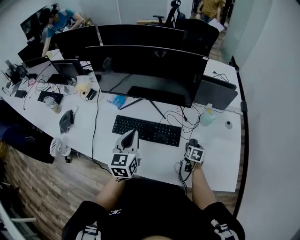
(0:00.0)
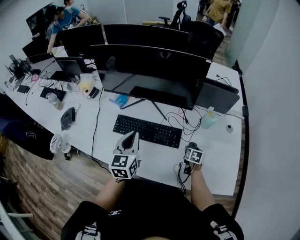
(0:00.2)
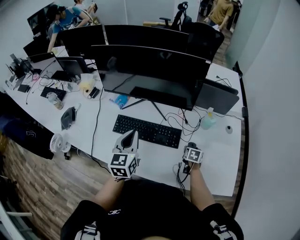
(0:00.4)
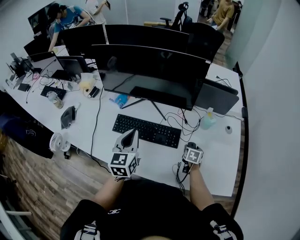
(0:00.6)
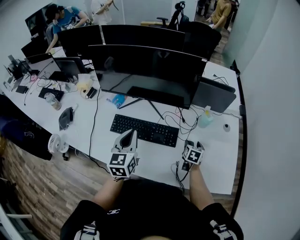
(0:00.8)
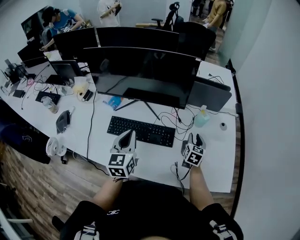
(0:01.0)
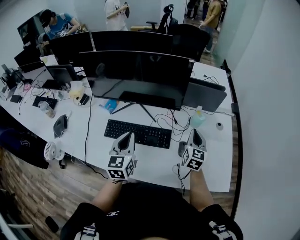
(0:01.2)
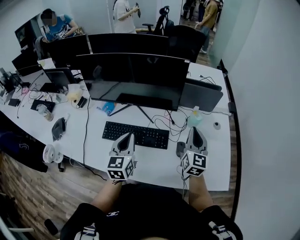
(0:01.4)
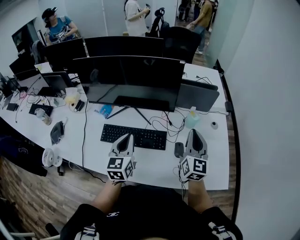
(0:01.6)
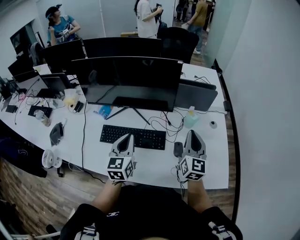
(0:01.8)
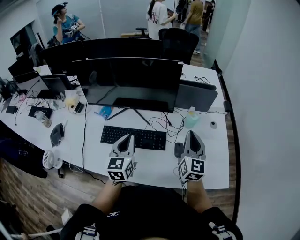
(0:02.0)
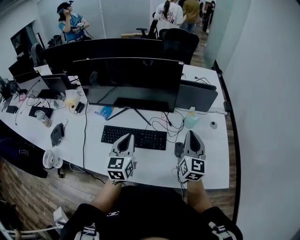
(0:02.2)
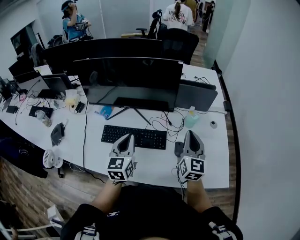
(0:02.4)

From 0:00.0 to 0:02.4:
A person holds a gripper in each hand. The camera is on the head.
From 0:00.0 to 0:01.2: The right gripper is displaced upward by some 20 cm, points its fingers some 40 degrees further upward, and closes.
From 0:01.2 to 0:02.4: The right gripper is displaced upward and backward by some 10 cm.

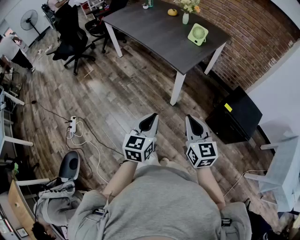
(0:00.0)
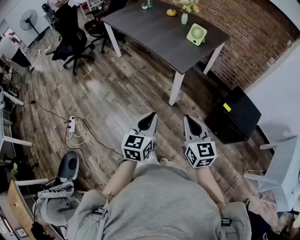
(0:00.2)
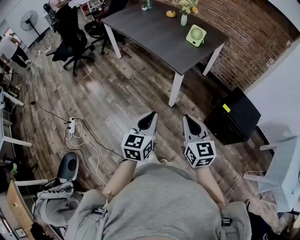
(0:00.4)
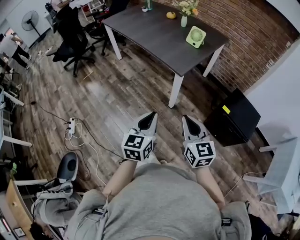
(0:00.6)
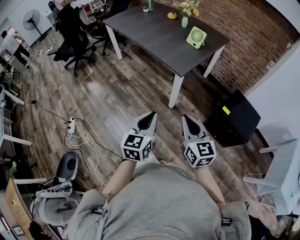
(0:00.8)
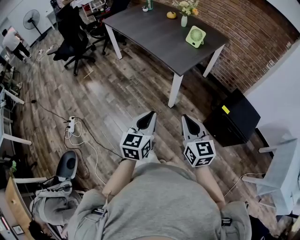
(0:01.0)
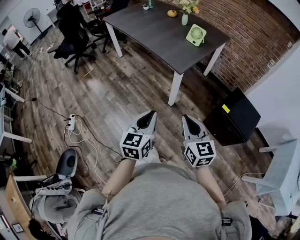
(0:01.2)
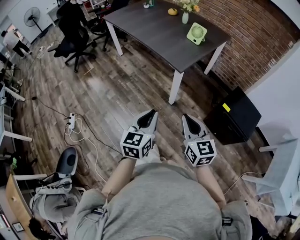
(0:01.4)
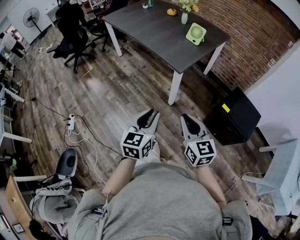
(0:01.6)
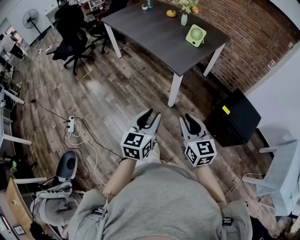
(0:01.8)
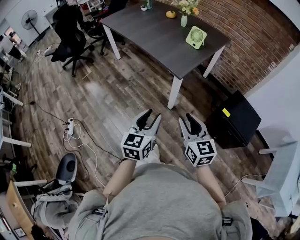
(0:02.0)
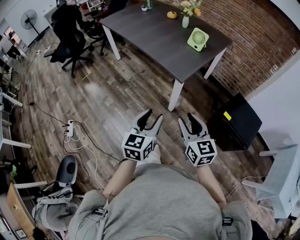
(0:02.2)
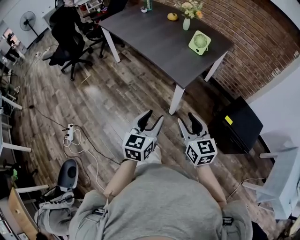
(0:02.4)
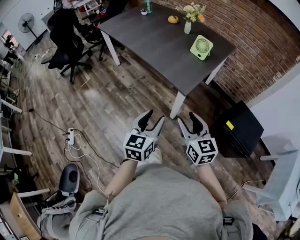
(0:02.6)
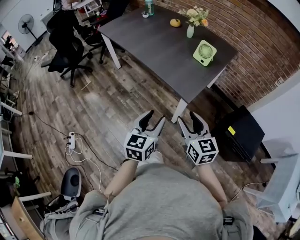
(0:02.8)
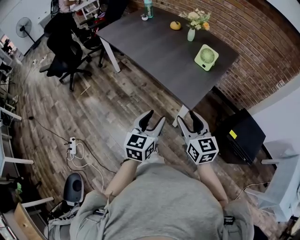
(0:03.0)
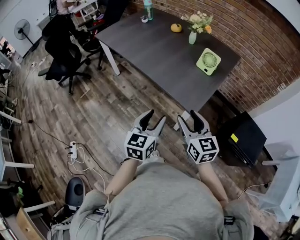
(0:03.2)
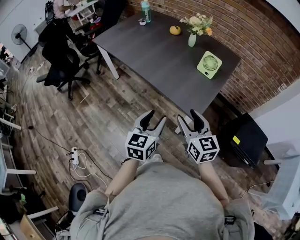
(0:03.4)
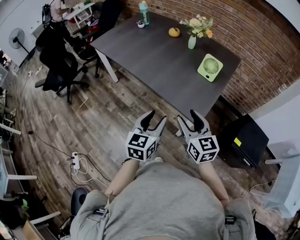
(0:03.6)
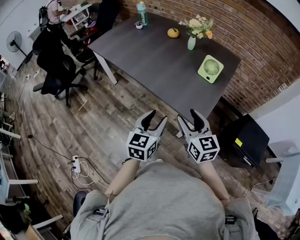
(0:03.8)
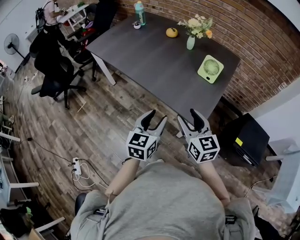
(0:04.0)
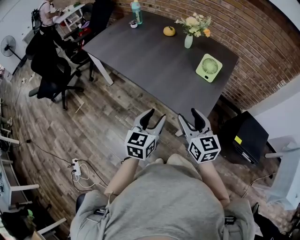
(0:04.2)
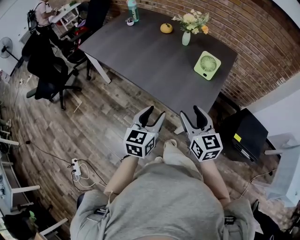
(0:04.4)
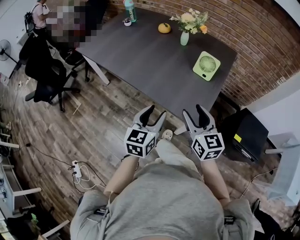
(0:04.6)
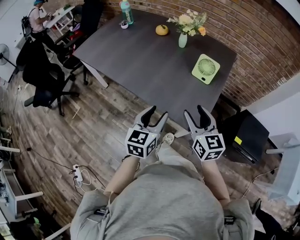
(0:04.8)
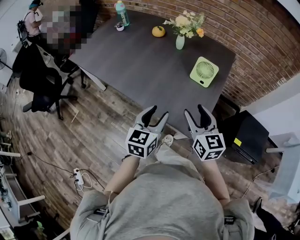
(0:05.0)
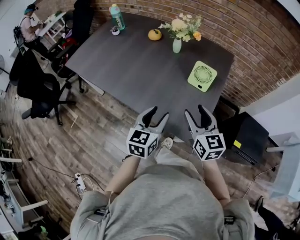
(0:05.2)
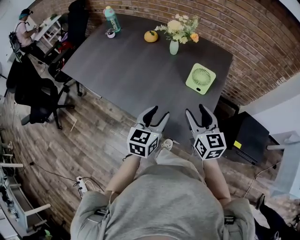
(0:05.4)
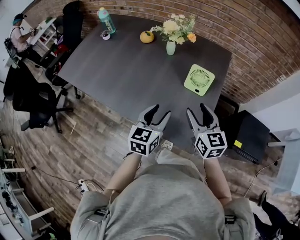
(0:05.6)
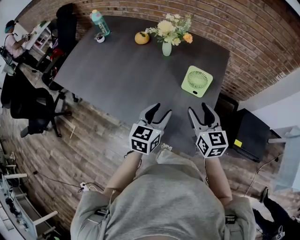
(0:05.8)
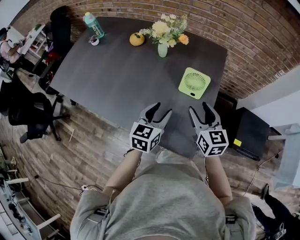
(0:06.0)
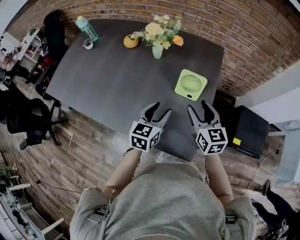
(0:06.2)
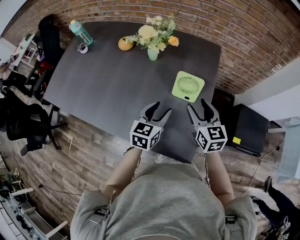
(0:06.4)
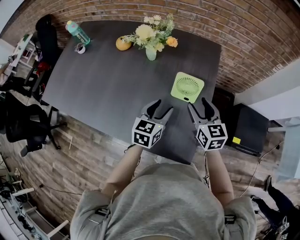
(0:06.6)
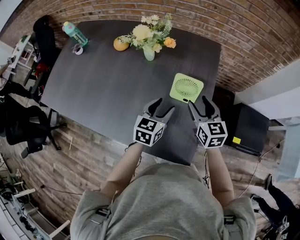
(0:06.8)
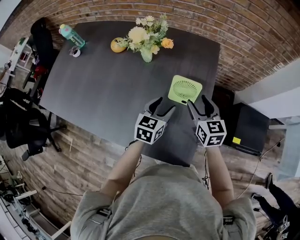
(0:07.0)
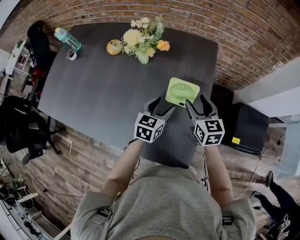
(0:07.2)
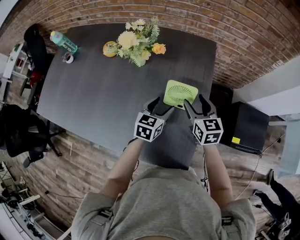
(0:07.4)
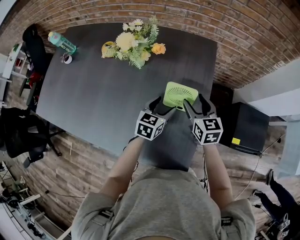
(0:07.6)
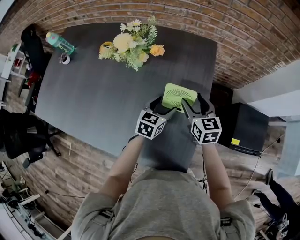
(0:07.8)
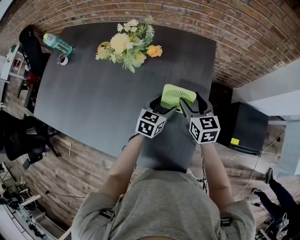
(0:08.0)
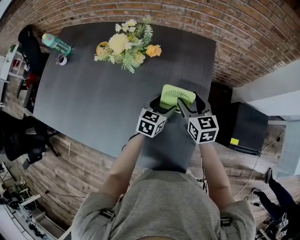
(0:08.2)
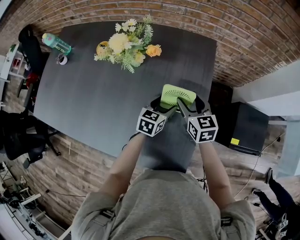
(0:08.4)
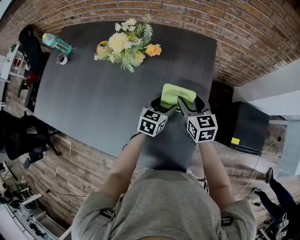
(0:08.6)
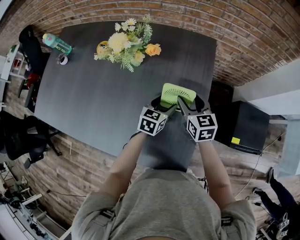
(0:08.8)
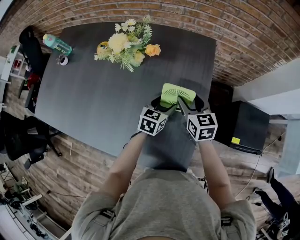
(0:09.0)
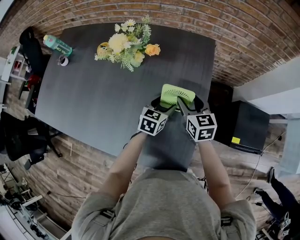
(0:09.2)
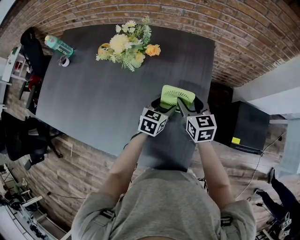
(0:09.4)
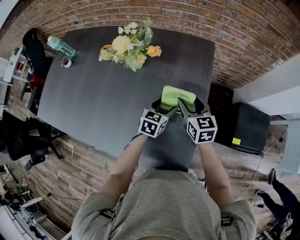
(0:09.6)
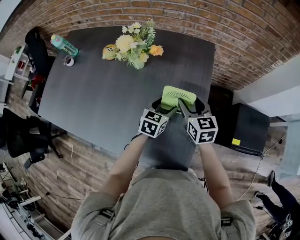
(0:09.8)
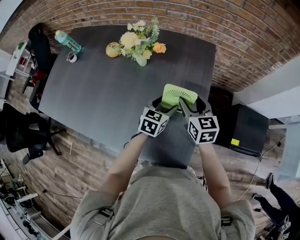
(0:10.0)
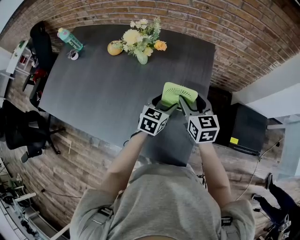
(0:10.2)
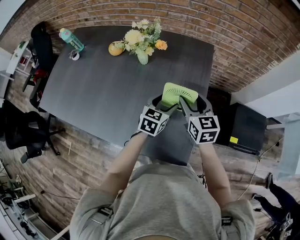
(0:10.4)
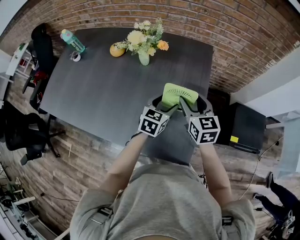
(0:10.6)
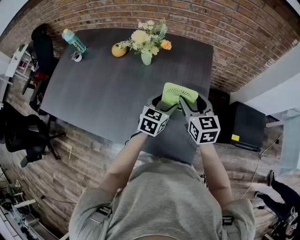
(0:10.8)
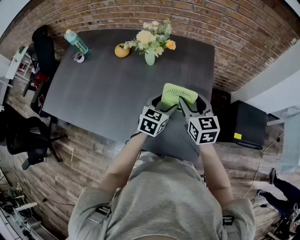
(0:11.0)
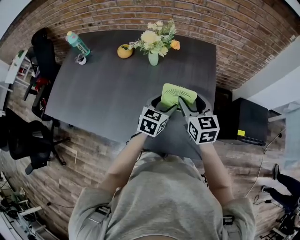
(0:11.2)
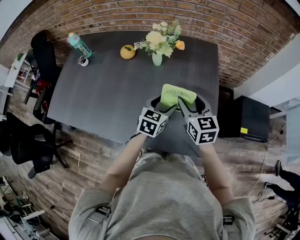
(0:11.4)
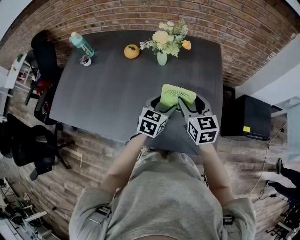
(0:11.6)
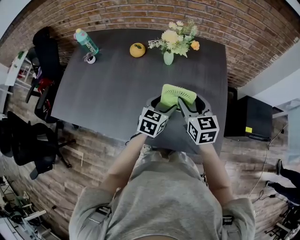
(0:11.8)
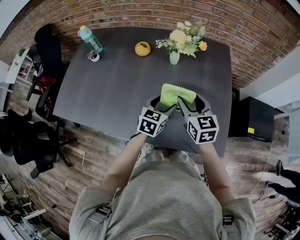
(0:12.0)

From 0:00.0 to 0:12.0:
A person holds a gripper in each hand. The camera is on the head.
From 0:00.0 to 0:01.6: There are only small adjustments of the grippers.
From 0:01.6 to 0:03.0: The two grippers go some 25 cm forward. The right gripper opens its fingers.
From 0:03.0 to 0:04.4: Both grippers move forward, approximately 15 cm.
From 0:04.4 to 0:06.0: Both grippers move forward, some 25 cm.
From 0:06.0 to 0:07.6: The right gripper is displaced forward and downward by about 15 cm, while the left gripper heads forward, downward and to the right, covering roughly 20 cm.
From 0:07.6 to 0:09.0: The grippers make only small movements.
From 0:09.0 to 0:10.4: The grippers both shift upward and backward by approximately 10 cm.
From 0:10.4 to 0:12.0: The grippers both shift to the left by roughly 20 cm.

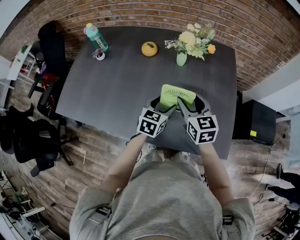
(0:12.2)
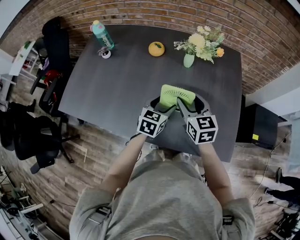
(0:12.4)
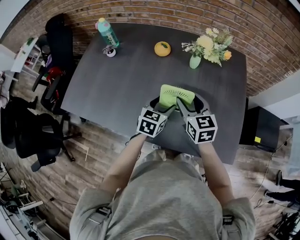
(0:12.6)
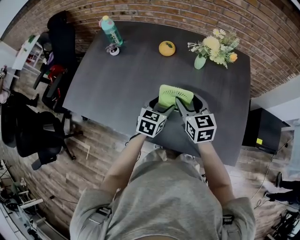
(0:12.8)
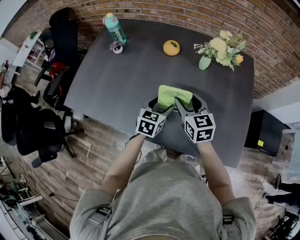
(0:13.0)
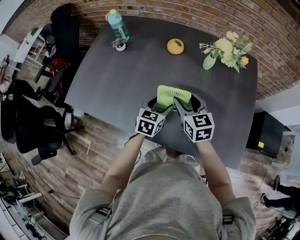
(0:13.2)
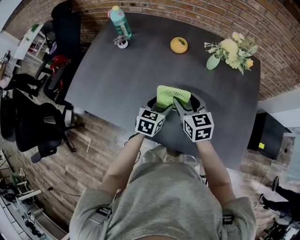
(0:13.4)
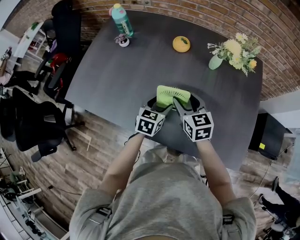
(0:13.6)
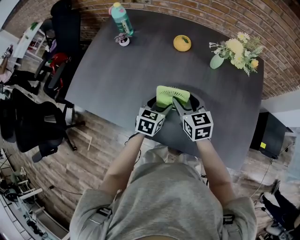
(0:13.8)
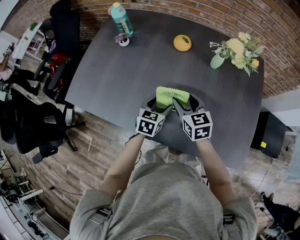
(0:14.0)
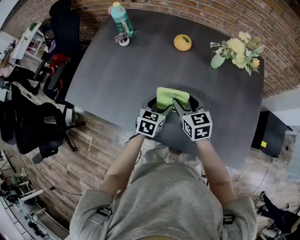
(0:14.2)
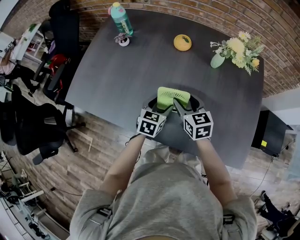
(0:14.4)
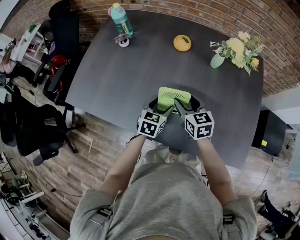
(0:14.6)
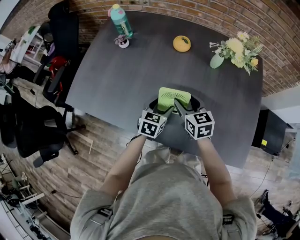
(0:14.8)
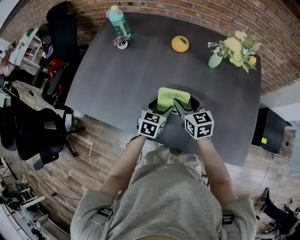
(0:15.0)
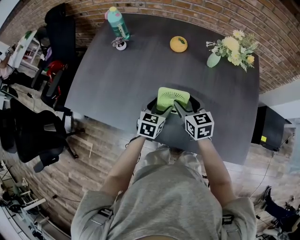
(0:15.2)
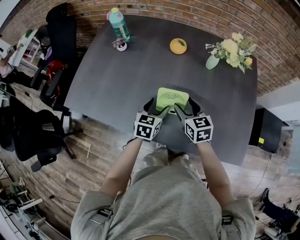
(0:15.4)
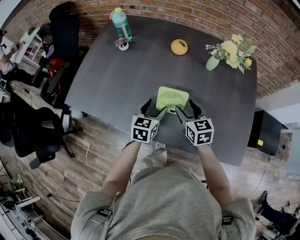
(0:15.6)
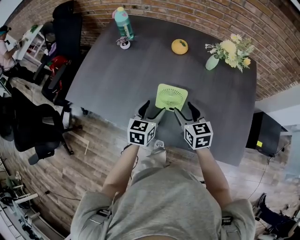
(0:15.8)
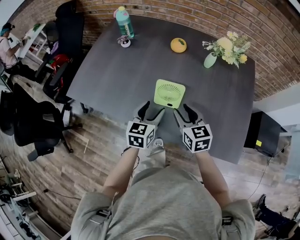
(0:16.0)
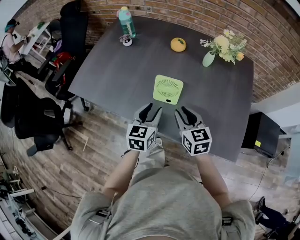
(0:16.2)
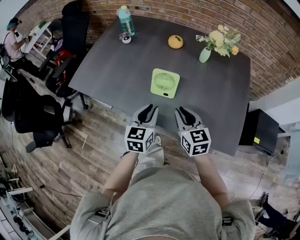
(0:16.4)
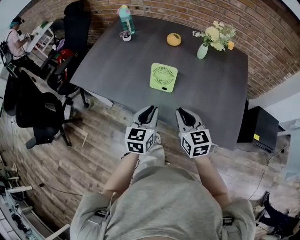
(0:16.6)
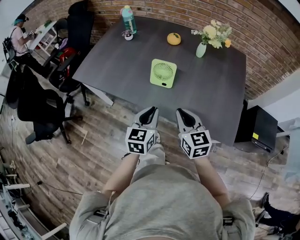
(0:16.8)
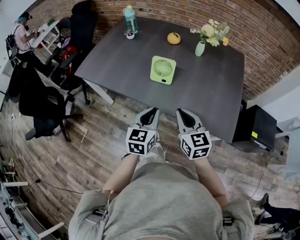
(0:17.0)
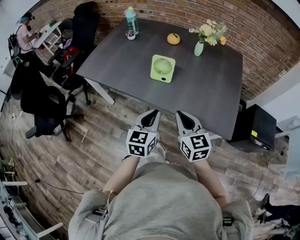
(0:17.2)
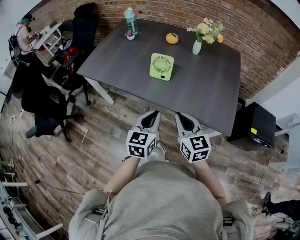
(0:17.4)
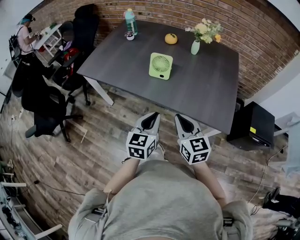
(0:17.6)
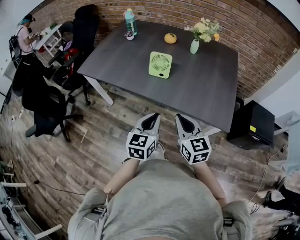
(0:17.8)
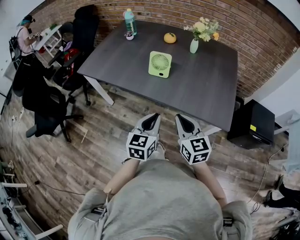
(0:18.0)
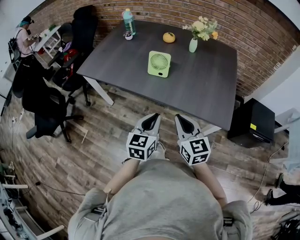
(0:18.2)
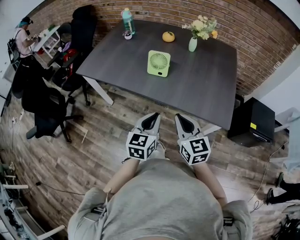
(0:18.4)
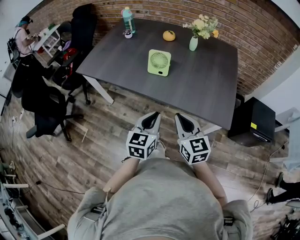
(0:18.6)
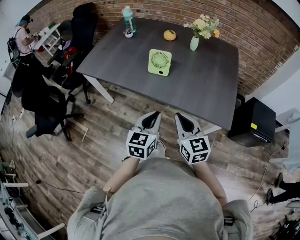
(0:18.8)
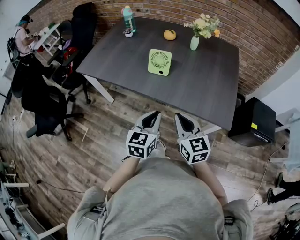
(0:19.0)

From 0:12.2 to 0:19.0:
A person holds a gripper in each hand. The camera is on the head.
From 0:12.2 to 0:13.6: The two grippers go approximately 15 cm to the left.
From 0:13.6 to 0:15.0: The grippers make only small movements.
From 0:15.0 to 0:16.2: The left gripper is displaced backward and upward by about 15 cm, and closes. The right gripper is displaced backward by about 15 cm, and closes up.
From 0:16.2 to 0:17.6: Both grippers move backward, some 25 cm. The left gripper closes its fingers. Meanwhile the right gripper closes.
From 0:17.6 to 0:19.0: There are only small adjustments of the grippers.

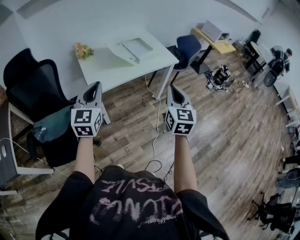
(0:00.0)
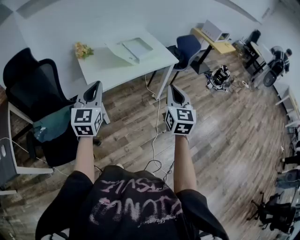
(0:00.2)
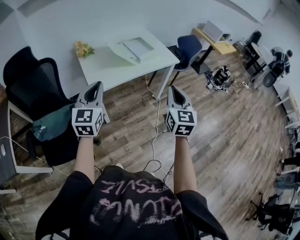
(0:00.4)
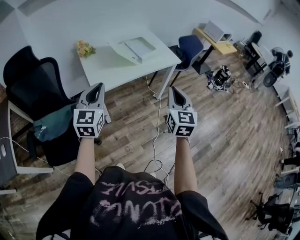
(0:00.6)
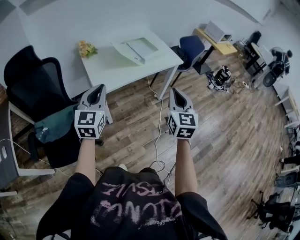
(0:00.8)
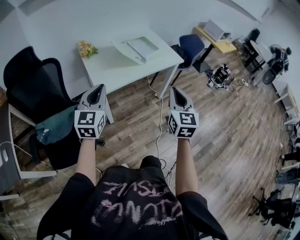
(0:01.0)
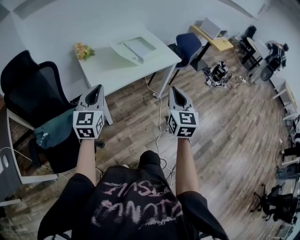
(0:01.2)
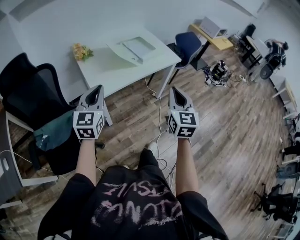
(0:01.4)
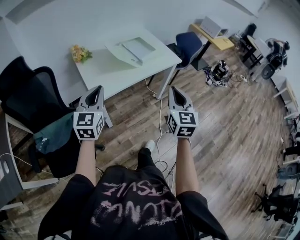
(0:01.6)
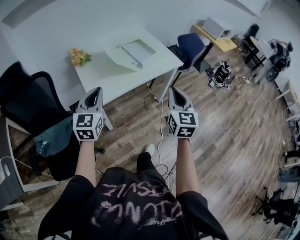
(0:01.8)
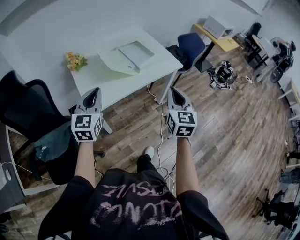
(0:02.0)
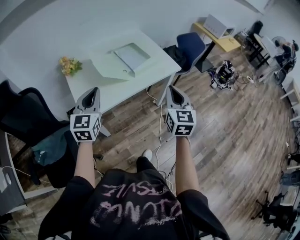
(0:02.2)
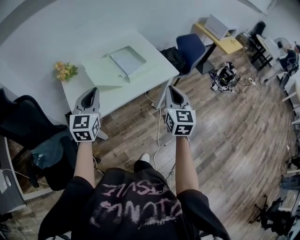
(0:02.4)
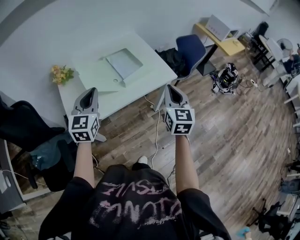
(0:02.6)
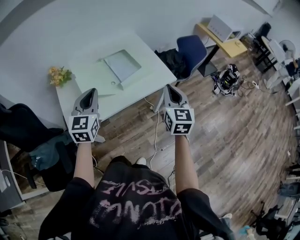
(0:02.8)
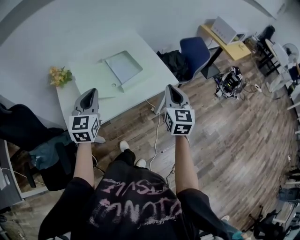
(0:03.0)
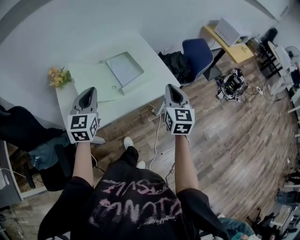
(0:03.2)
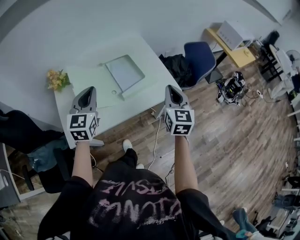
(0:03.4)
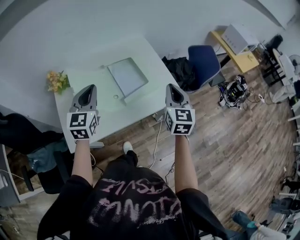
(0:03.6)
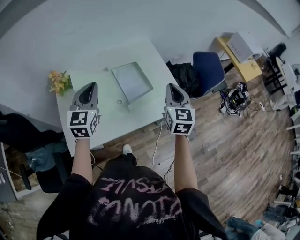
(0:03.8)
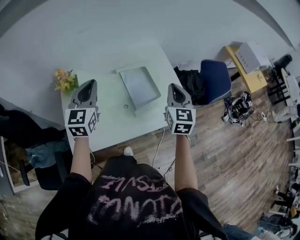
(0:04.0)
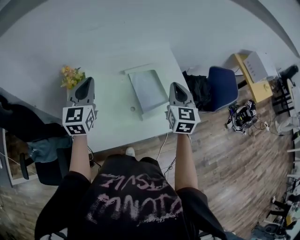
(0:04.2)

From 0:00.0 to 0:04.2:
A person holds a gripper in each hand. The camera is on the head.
From 0:00.0 to 0:01.4: The right gripper ends up roughly 5 cm from where it was; the left gripper ends up about 5 cm from where it was.
From 0:01.4 to 0:02.8: Both grippers move forward and to the right, some 35 cm.
From 0:02.8 to 0:04.2: The right gripper is displaced forward by some 25 cm. Meanwhile the left gripper travels forward and to the left by about 25 cm.
